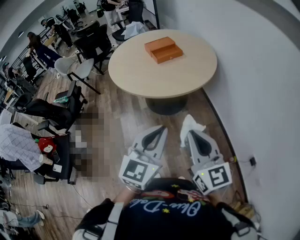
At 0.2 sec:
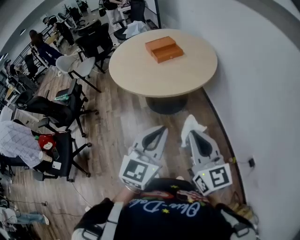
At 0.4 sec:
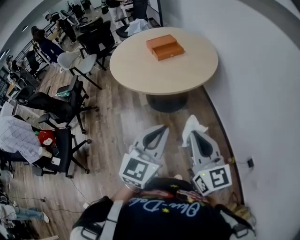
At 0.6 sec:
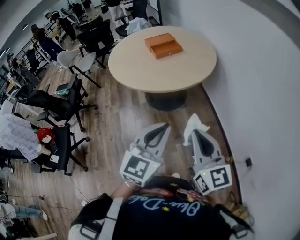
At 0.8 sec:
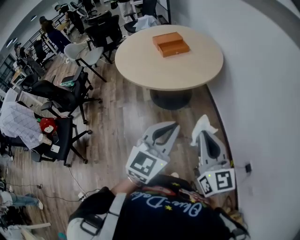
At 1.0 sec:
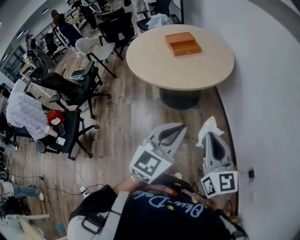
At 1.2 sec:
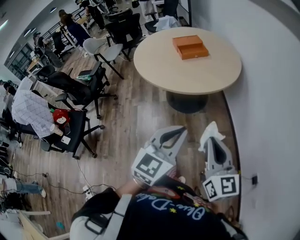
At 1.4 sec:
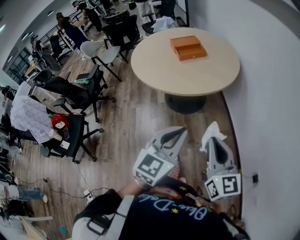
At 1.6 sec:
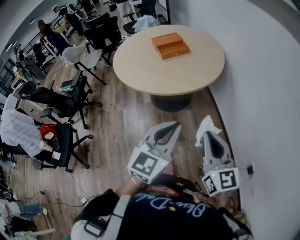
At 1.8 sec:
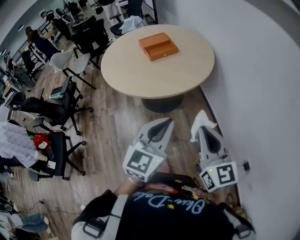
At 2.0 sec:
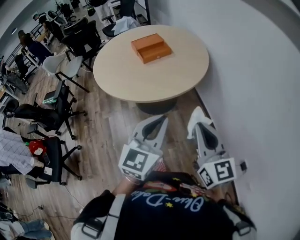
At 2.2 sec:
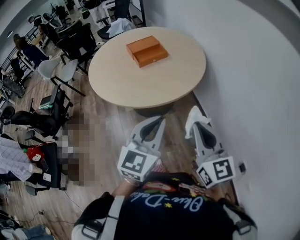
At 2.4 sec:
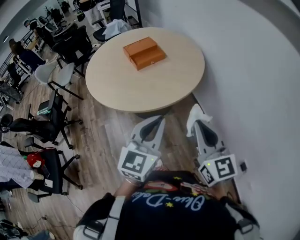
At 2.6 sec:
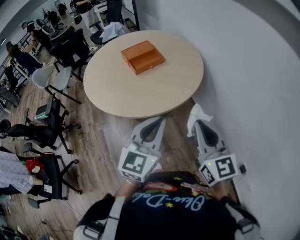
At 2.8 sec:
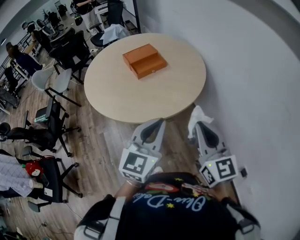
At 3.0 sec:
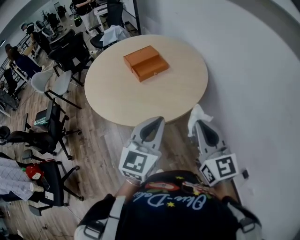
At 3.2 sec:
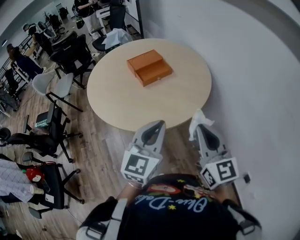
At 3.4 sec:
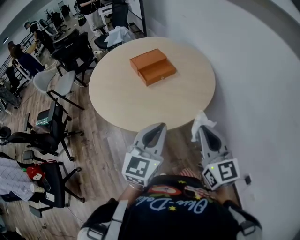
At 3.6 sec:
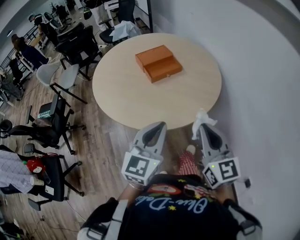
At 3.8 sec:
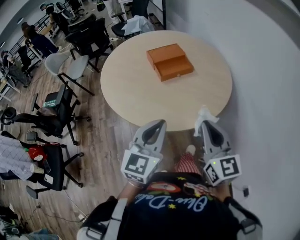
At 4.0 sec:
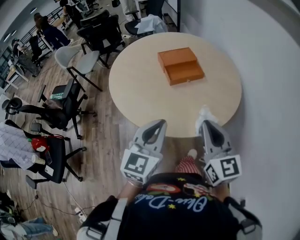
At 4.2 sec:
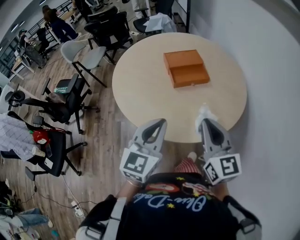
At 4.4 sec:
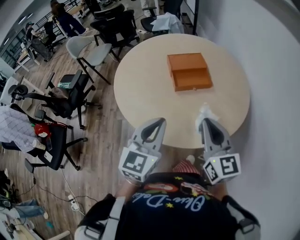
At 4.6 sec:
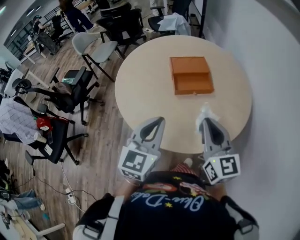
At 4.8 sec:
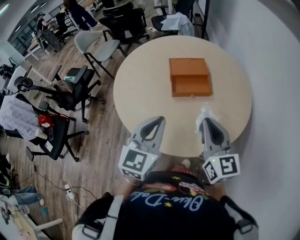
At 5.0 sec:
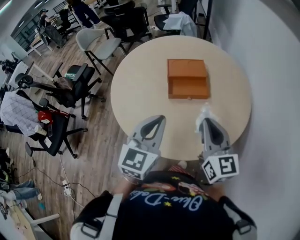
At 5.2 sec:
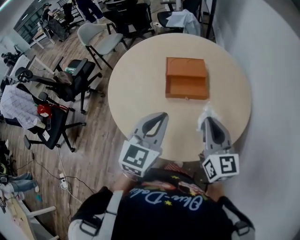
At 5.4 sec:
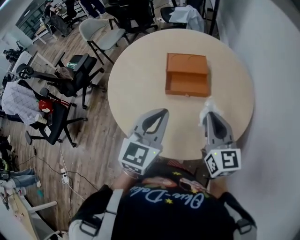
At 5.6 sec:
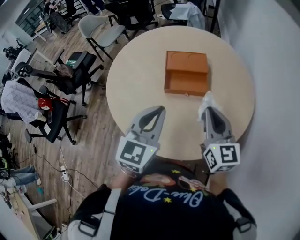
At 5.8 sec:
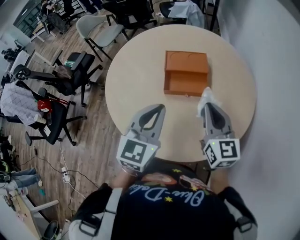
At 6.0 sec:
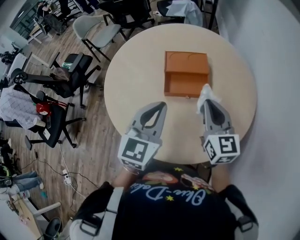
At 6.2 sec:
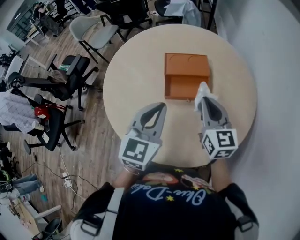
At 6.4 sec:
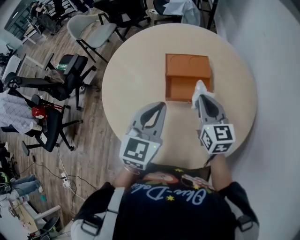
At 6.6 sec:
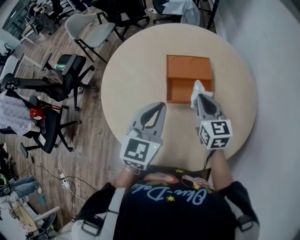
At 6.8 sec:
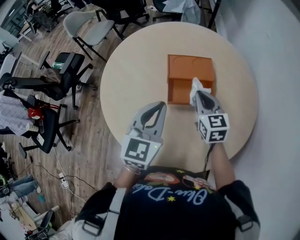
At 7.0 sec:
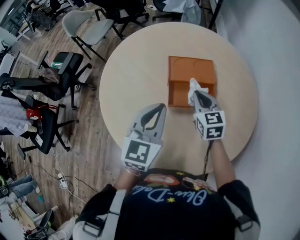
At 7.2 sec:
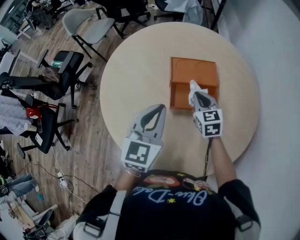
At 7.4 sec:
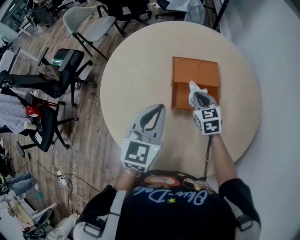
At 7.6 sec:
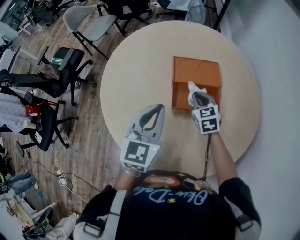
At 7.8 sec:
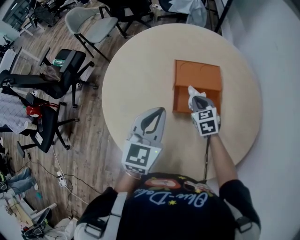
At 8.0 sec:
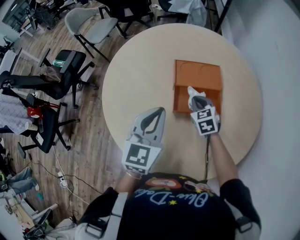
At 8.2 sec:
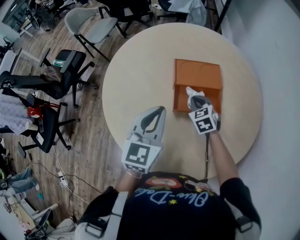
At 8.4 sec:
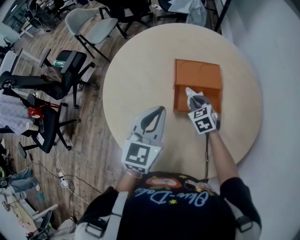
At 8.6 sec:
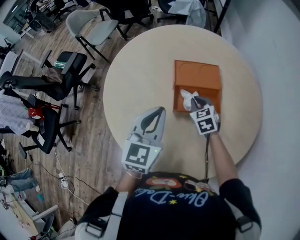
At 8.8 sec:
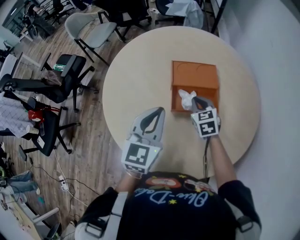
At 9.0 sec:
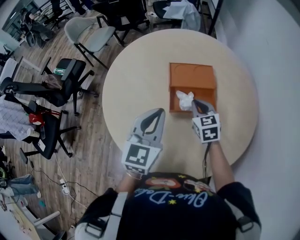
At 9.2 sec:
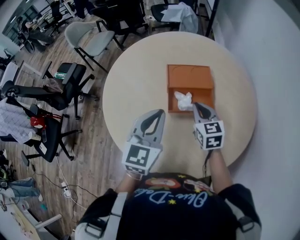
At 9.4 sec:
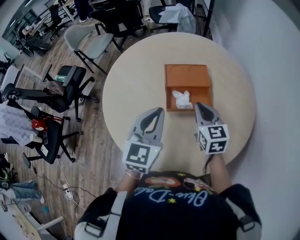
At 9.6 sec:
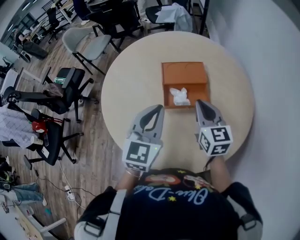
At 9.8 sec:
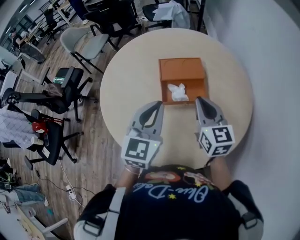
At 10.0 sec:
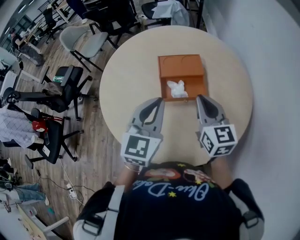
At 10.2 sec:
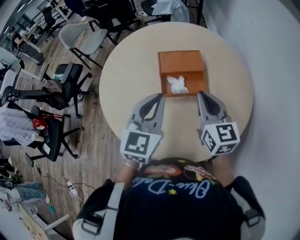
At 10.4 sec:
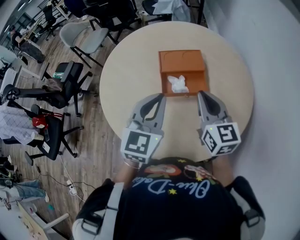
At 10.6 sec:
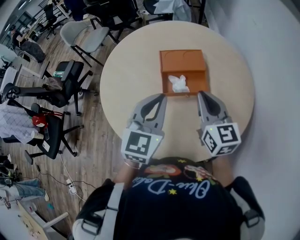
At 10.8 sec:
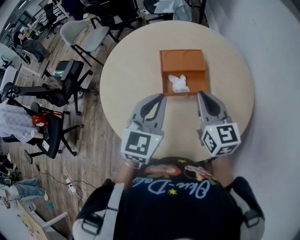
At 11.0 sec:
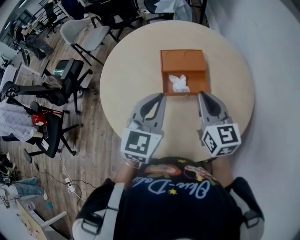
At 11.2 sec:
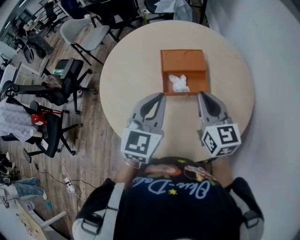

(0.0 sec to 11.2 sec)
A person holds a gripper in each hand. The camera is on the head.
0.0 sec - 1.6 sec: The grippers both shift to the right by roughly 10 cm.
1.6 sec - 3.2 sec: The right gripper heads forward, covering approximately 20 cm. The left gripper moves forward and to the left, some 20 cm.
3.2 sec - 4.8 sec: The left gripper changes place by about 15 cm, and rotates some 30 degrees; the right gripper shifts by roughly 25 cm, and rotates about 30 degrees.
4.8 sec - 6.4 sec: The grippers both shift forward by about 15 cm.
6.4 sec - 8.0 sec: The right gripper goes some 20 cm downward and forward, and turns by approximately 30 degrees. The left gripper shifts approximately 5 cm forward.
8.0 sec - 9.6 sec: The right gripper goes about 20 cm upward and backward, and turns by some 30 degrees; the left gripper changes place by roughly 10 cm.
9.6 sec - 11.2 sec: The right gripper changes place by approximately 5 cm.

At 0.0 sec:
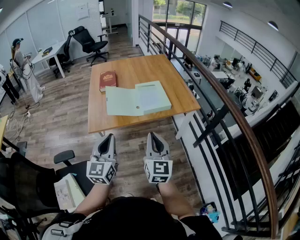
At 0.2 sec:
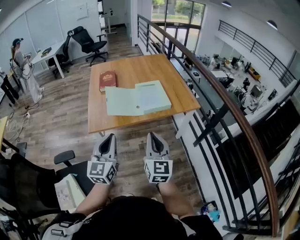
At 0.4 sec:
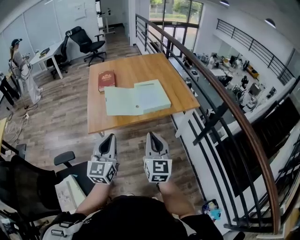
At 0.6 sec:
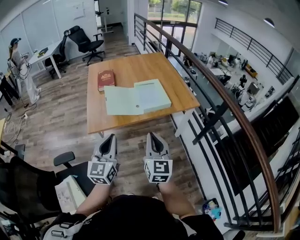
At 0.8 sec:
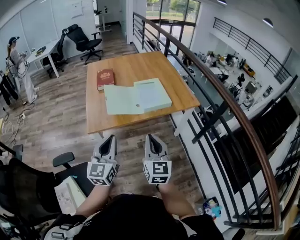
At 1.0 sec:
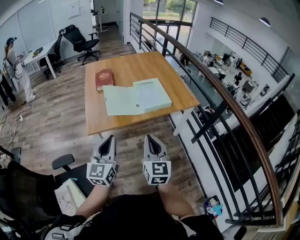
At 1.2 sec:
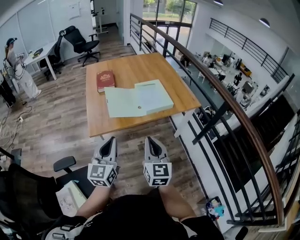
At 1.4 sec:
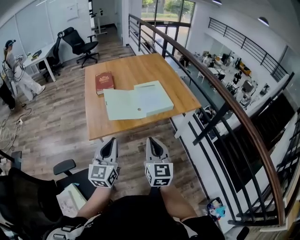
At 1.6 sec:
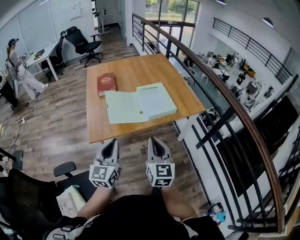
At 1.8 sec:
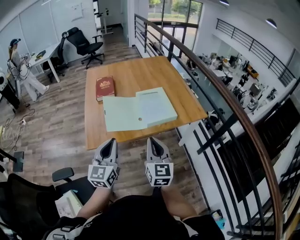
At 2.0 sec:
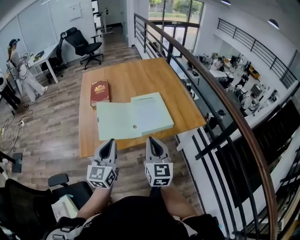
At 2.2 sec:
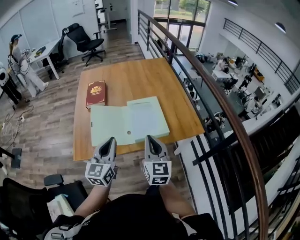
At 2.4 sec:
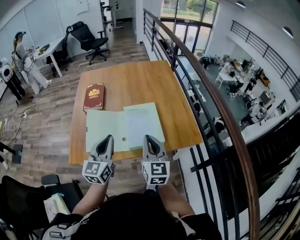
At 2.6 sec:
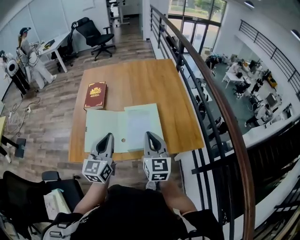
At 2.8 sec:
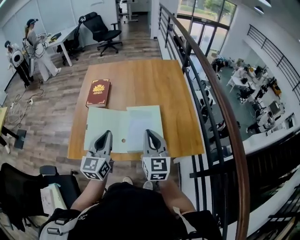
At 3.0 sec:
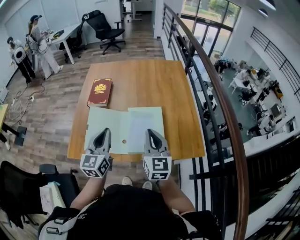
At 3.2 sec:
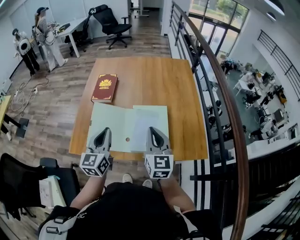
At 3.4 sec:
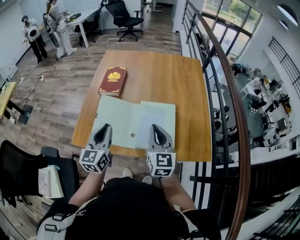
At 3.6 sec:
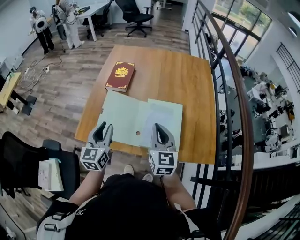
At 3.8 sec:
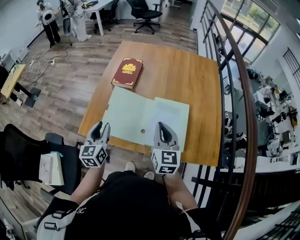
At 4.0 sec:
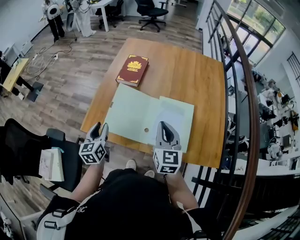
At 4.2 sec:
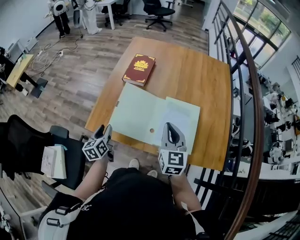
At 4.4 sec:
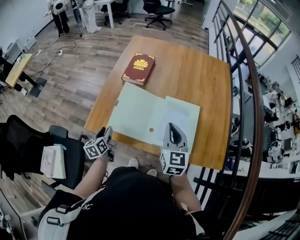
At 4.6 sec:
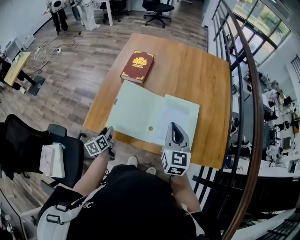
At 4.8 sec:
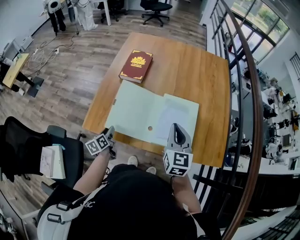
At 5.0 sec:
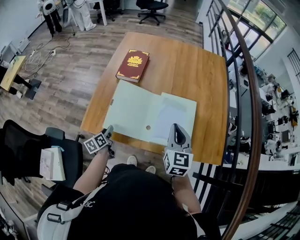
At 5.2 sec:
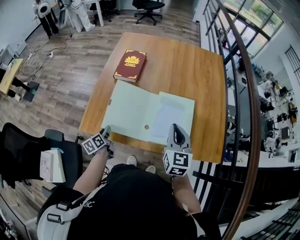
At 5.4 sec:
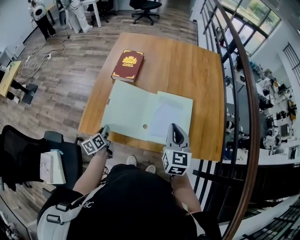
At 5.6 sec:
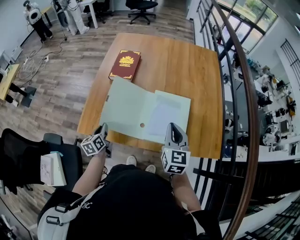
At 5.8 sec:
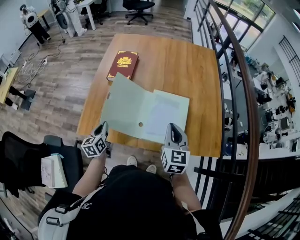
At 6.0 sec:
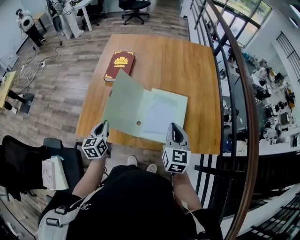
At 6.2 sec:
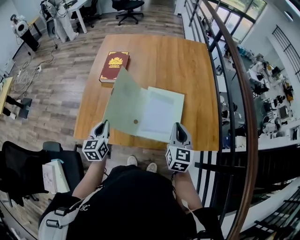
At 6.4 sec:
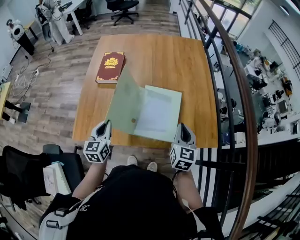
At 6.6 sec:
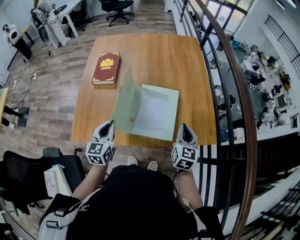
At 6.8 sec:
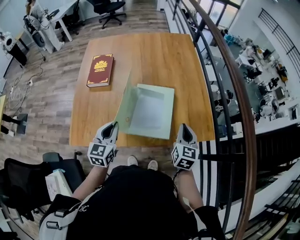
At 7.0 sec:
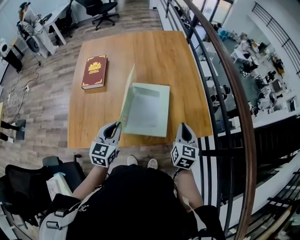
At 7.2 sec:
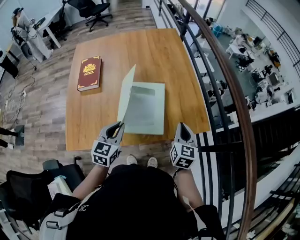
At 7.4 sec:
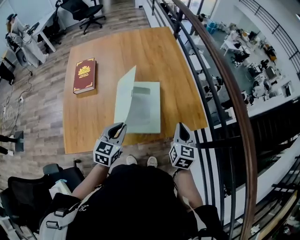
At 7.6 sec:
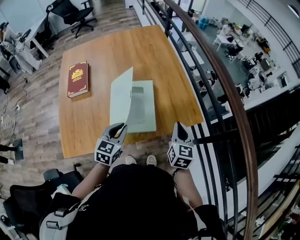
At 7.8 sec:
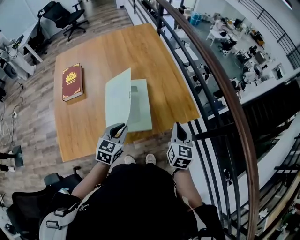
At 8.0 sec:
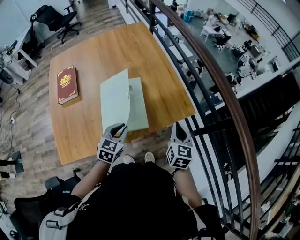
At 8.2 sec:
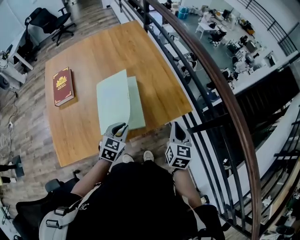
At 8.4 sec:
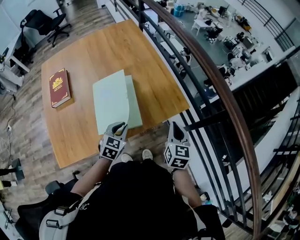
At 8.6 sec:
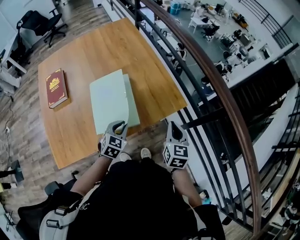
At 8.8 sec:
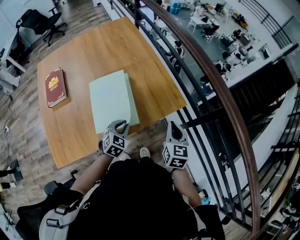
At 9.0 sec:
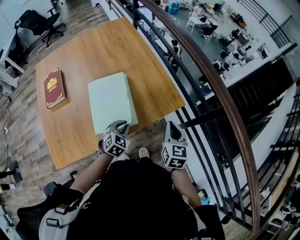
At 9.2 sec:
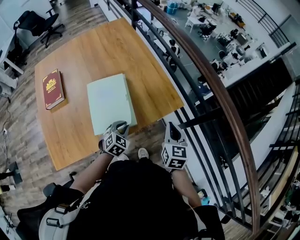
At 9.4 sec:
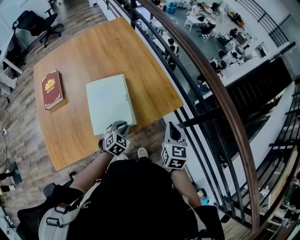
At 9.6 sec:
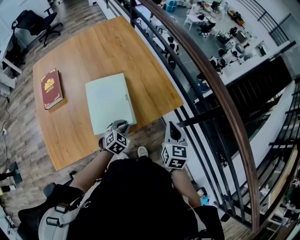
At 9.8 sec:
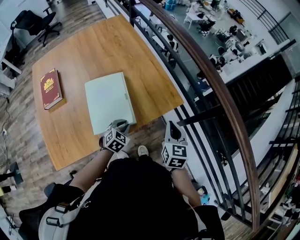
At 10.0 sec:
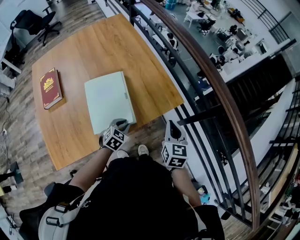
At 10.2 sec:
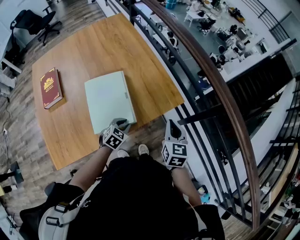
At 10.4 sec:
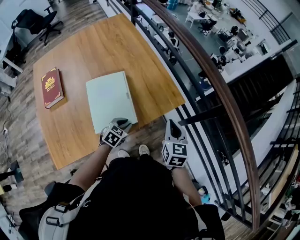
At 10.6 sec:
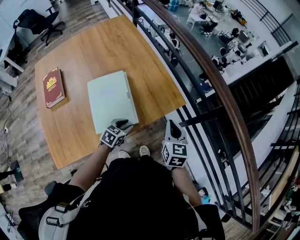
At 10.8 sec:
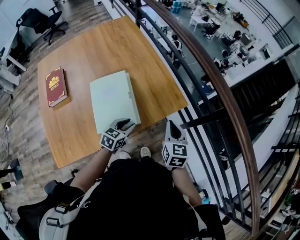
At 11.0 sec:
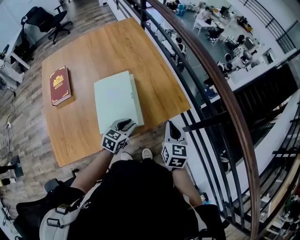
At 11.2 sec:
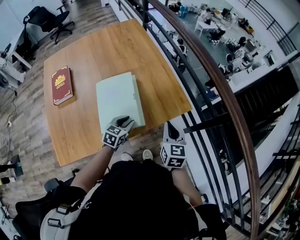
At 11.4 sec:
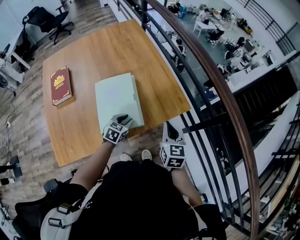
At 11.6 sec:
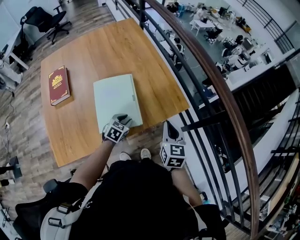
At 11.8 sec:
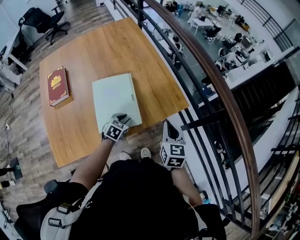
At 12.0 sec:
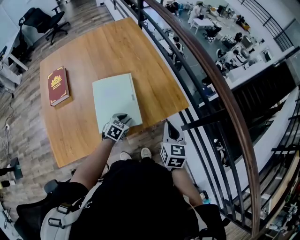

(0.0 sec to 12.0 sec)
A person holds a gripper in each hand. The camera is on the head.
0.0 sec - 1.6 sec: The left gripper shifts roughly 5 cm forward. The right gripper goes some 10 cm to the left and forward.
1.6 sec - 3.0 sec: The grippers both shift forward and to the right by roughly 35 cm.
3.0 sec - 4.4 sec: The left gripper shifts some 30 cm downward and to the left, changes its angle by roughly 50 degrees, and opens, while the right gripper moves to the left, forward and downward, roughly 10 cm.
4.4 sec - 6.0 sec: The right gripper is displaced to the right by approximately 5 cm. The left gripper travels to the right and upward by roughly 10 cm, rotates about 20 degrees, and closes up.
6.0 sec - 7.6 sec: The right gripper moves about 20 cm, and swivels some 30 degrees. Meanwhile the left gripper moves about 25 cm, and rotates roughly 50 degrees.
7.6 sec - 9.0 sec: The right gripper shifts roughly 5 cm to the right. Meanwhile the left gripper shifts about 15 cm downward and to the right, and swivels about 30 degrees.
9.0 sec - 10.4 sec: The grippers stay close to where they were, moving slightly.
10.4 sec - 12.0 sec: The left gripper changes place by some 5 cm.
